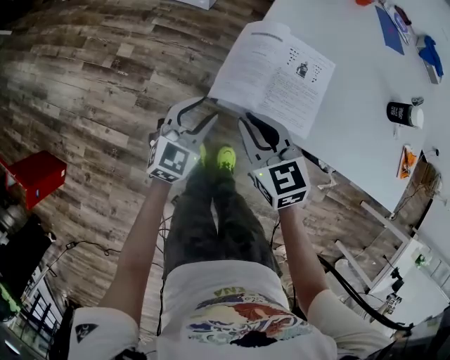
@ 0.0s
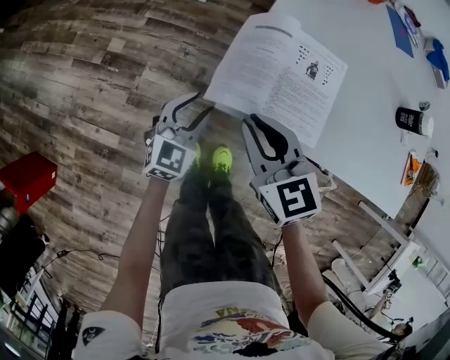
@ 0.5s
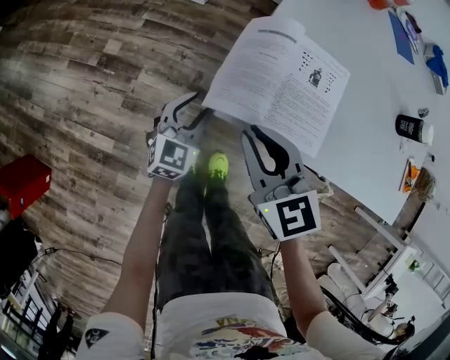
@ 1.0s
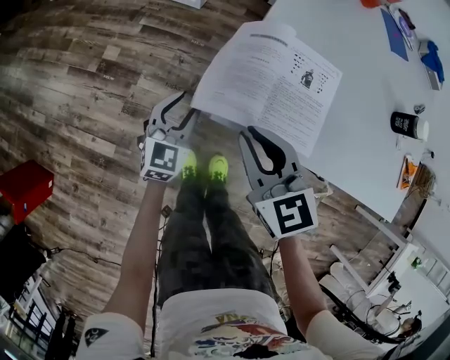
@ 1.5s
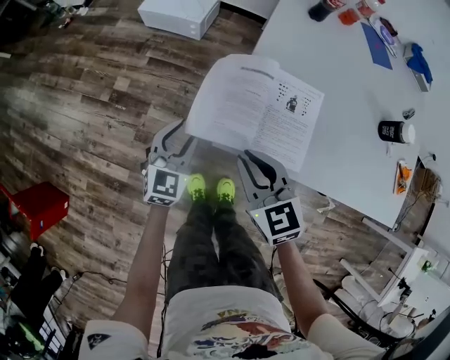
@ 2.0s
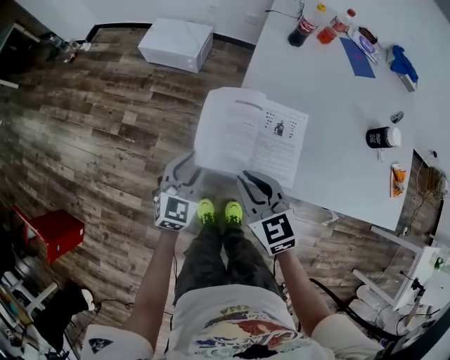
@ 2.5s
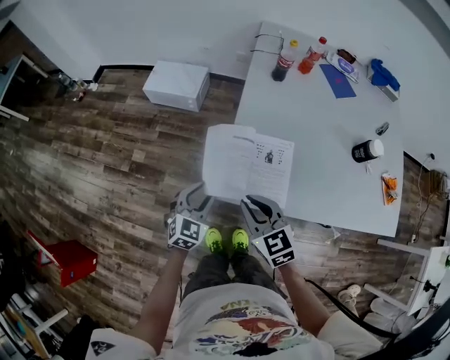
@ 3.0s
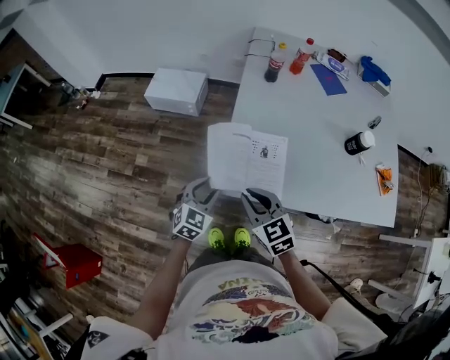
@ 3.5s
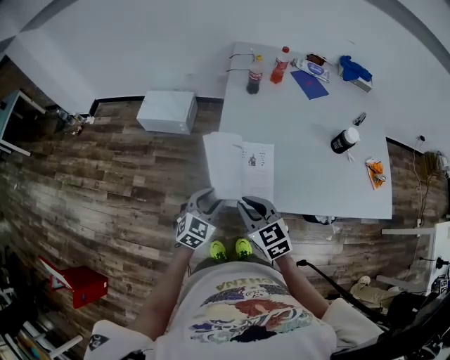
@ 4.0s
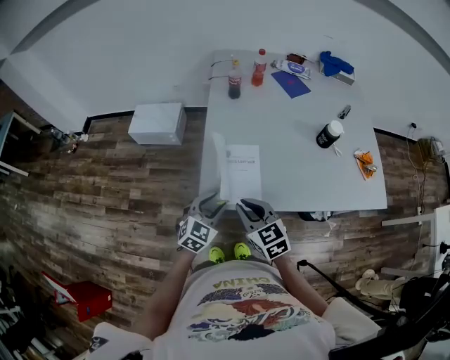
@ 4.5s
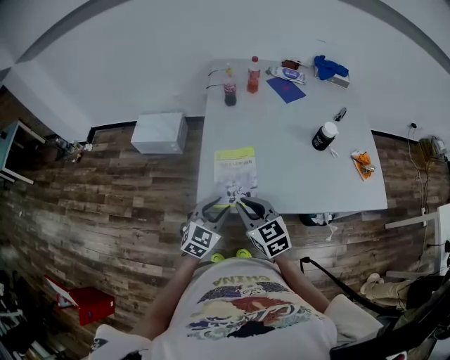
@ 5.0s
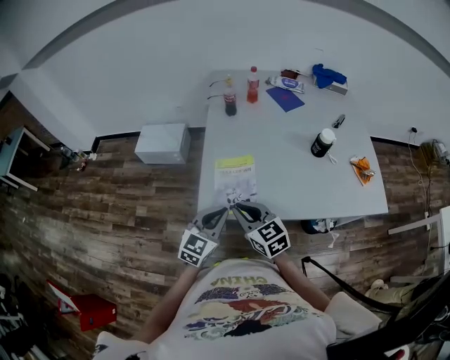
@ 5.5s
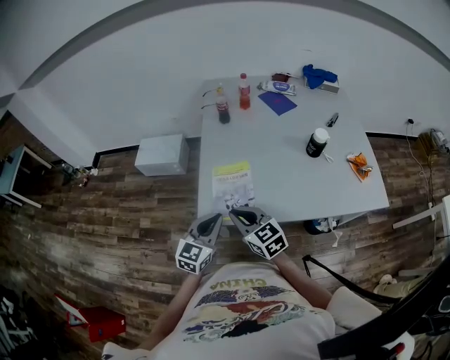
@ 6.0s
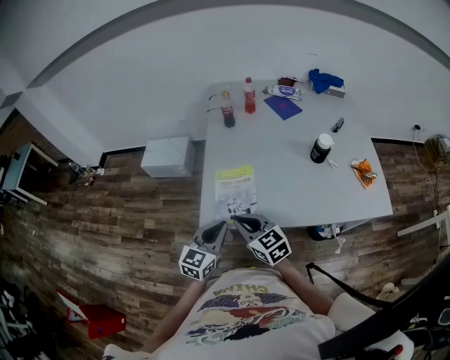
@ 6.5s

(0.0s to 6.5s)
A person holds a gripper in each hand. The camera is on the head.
0.0s - 2.0s: The left gripper goes approximately 5 cm forward, and goes downward and returns, about 10 cm each way.
2.0s - 4.5s: The left gripper moves to the right and upward, some 25 cm, and turns by some 30 degrees. The right gripper is displaced upward and to the right by some 15 cm.
4.5s - 6.5s: The left gripper moves upward and to the right, approximately 10 cm, turns by approximately 20 degrees, and closes its fingers.

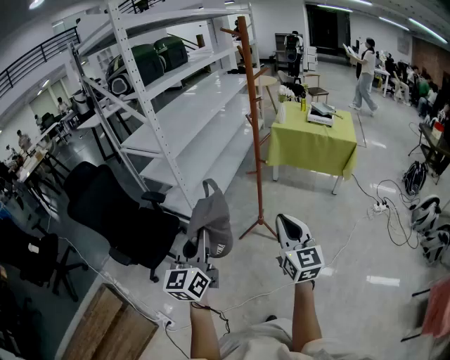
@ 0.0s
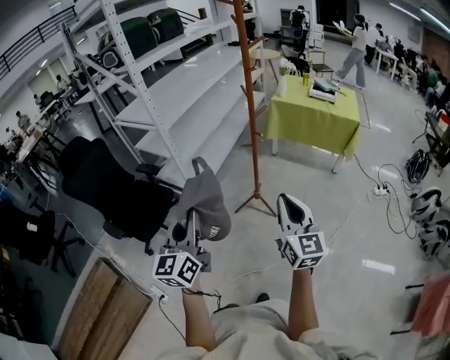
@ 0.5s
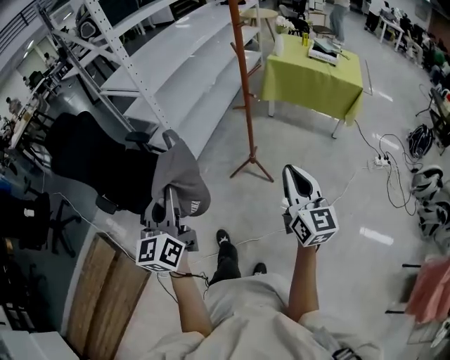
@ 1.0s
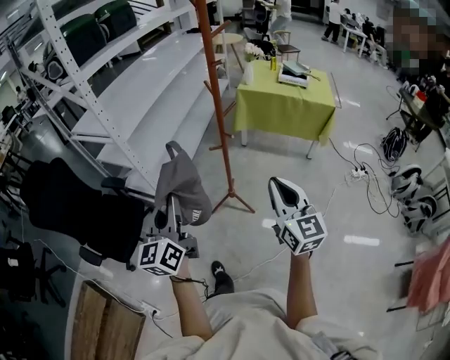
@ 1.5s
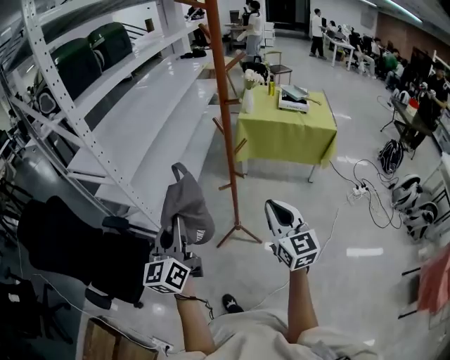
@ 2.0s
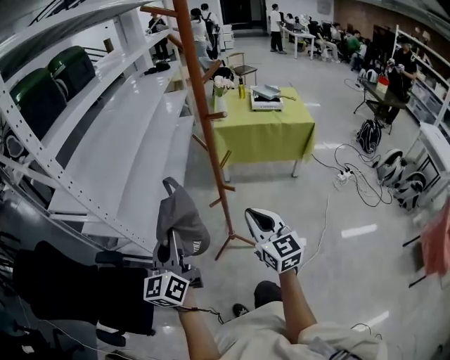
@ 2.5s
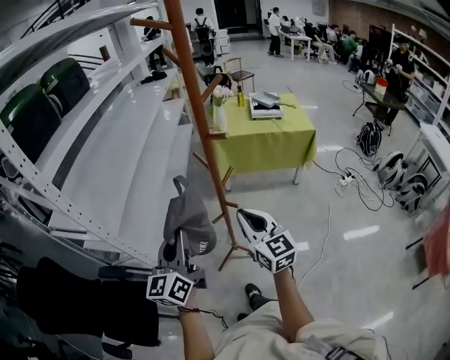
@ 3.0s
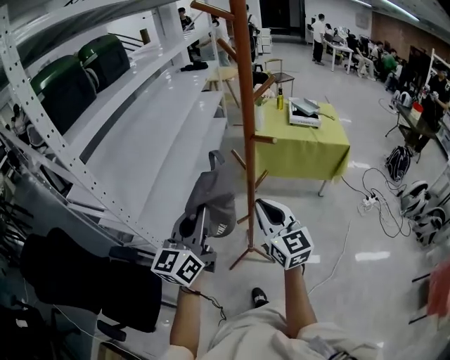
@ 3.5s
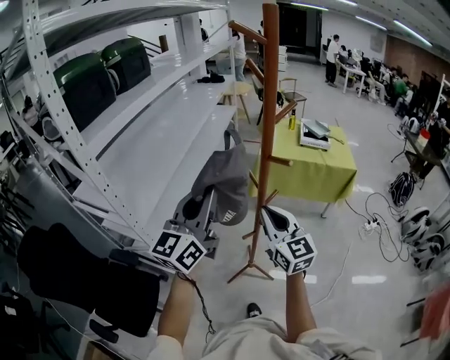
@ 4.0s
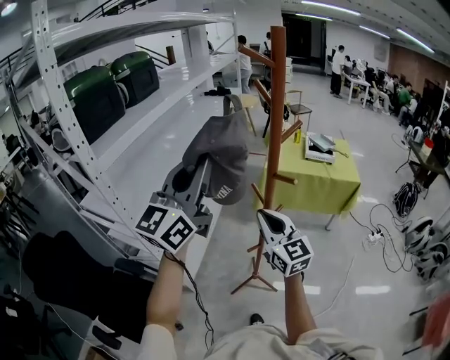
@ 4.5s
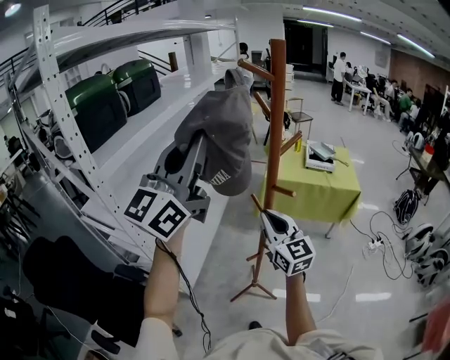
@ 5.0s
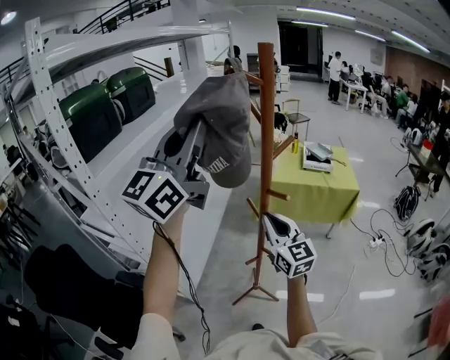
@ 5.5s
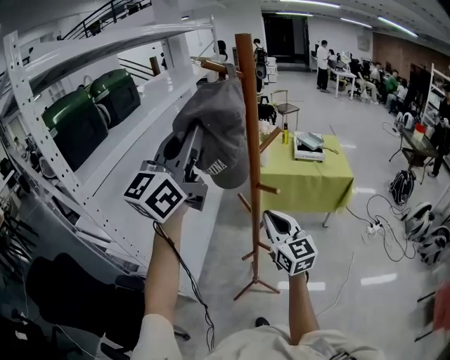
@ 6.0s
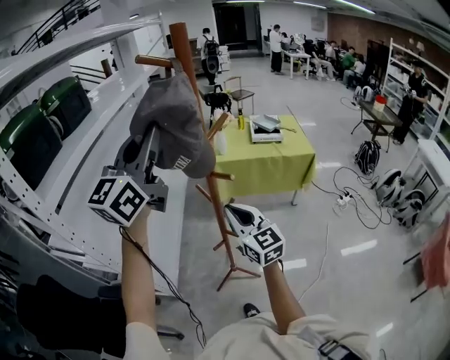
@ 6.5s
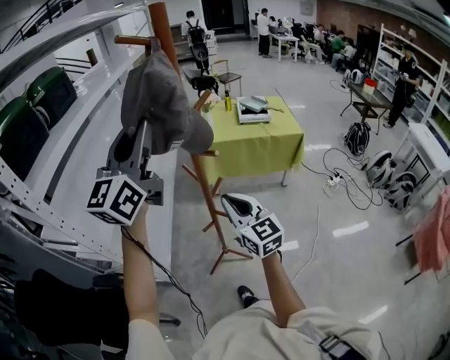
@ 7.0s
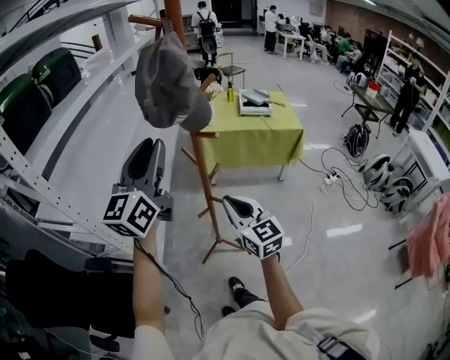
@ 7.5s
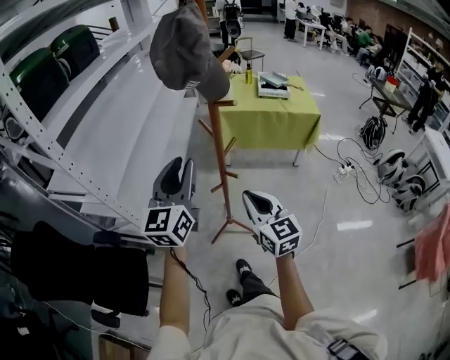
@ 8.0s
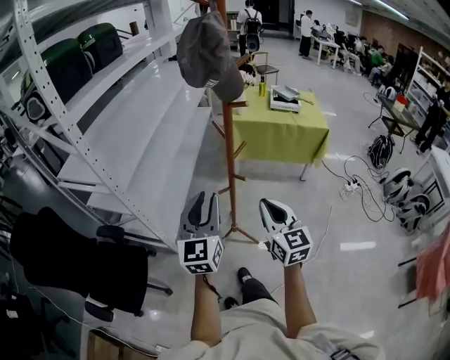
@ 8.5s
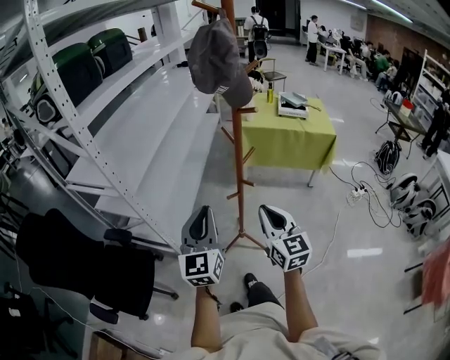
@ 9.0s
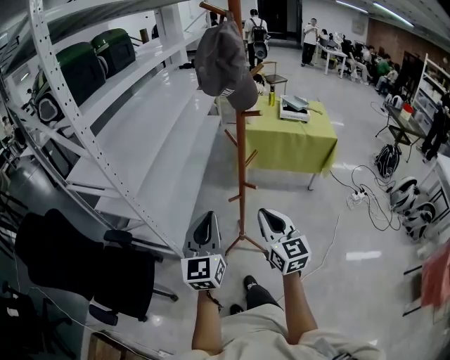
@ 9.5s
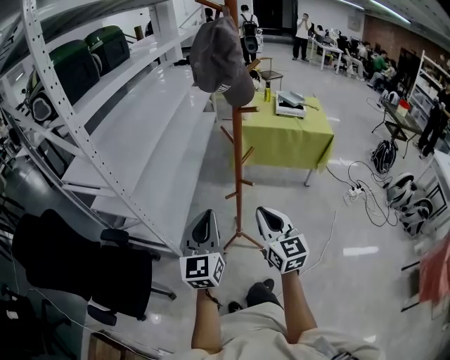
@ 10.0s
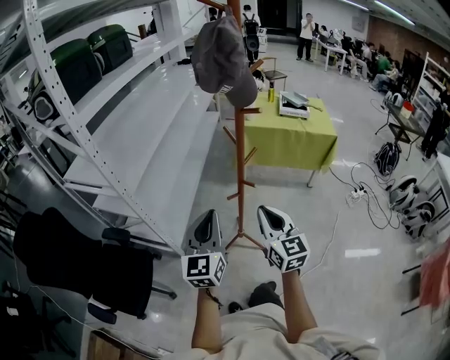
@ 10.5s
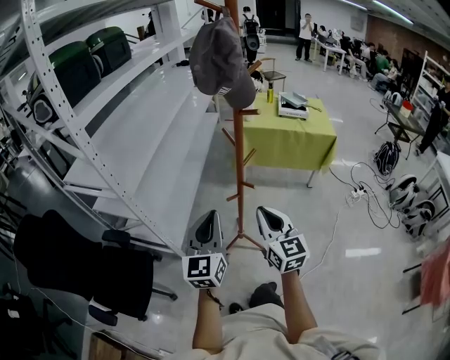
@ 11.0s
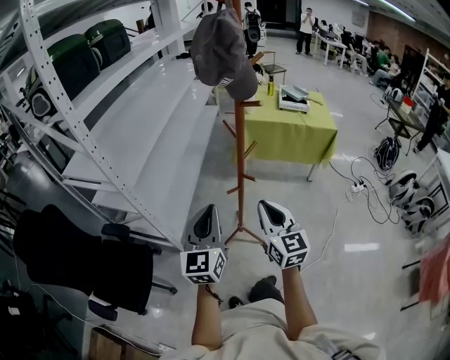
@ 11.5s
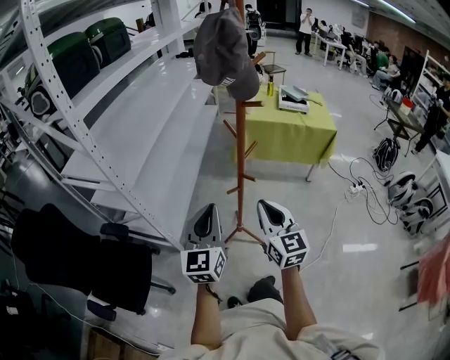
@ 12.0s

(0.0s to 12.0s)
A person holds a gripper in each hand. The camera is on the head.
0.0s - 2.0s: The two grippers go approximately 25 cm forward.
2.0s - 4.0s: The right gripper heads forward and to the left, covering approximately 20 cm; the left gripper shifts about 25 cm forward and upward, and changes its angle by some 20 degrees.
4.0s - 6.0s: The right gripper shifts approximately 5 cm forward. Meanwhile the left gripper is displaced upward by about 20 cm.
6.0s - 8.0s: The left gripper travels downward and backward by some 30 cm, swivels some 20 degrees, and opens up, while the right gripper is displaced backward and downward by approximately 20 cm.
8.0s - 10.0s: The left gripper heads downward and backward, covering roughly 15 cm, and closes its fingers.
10.0s - 12.0s: Neither gripper changes place.

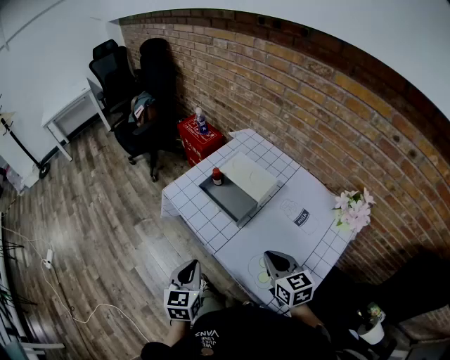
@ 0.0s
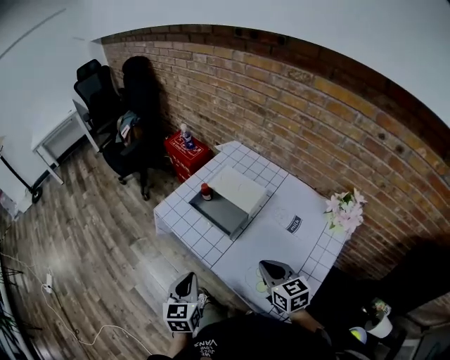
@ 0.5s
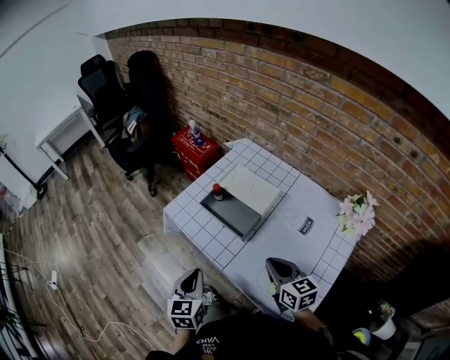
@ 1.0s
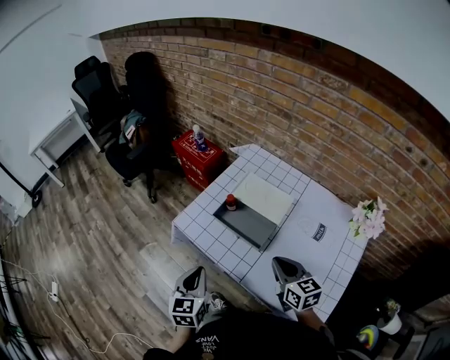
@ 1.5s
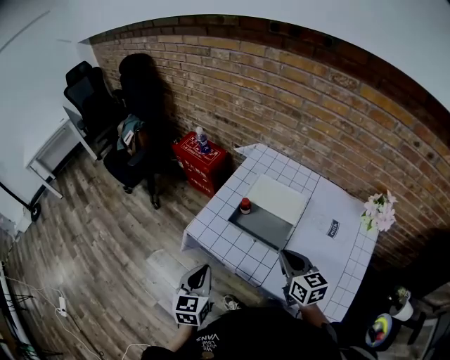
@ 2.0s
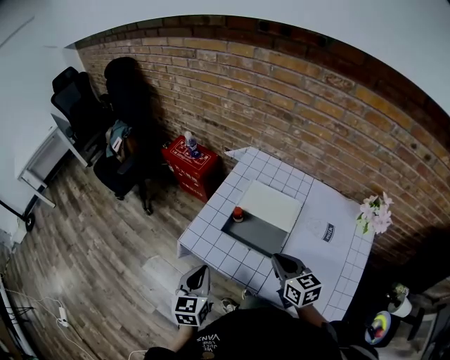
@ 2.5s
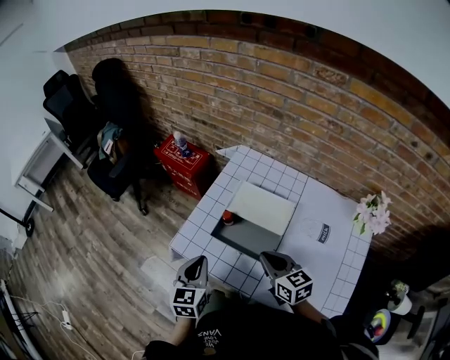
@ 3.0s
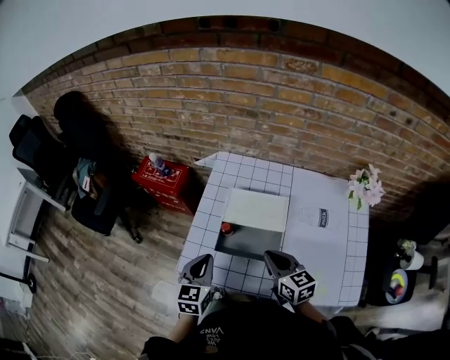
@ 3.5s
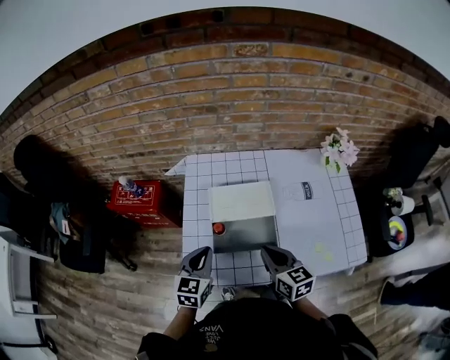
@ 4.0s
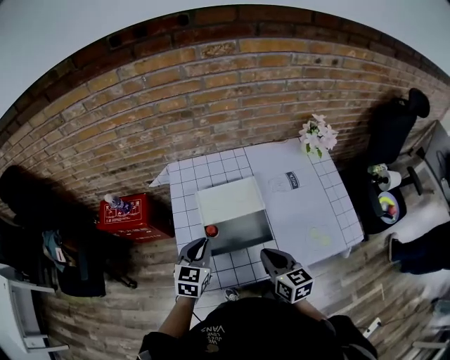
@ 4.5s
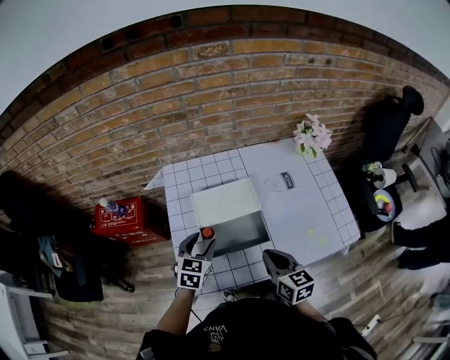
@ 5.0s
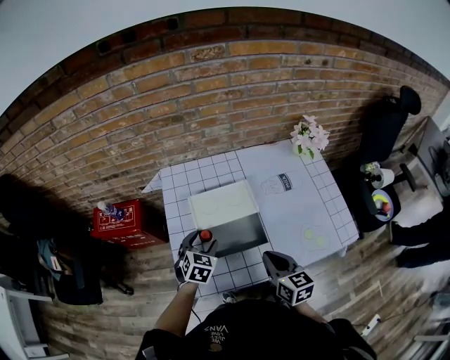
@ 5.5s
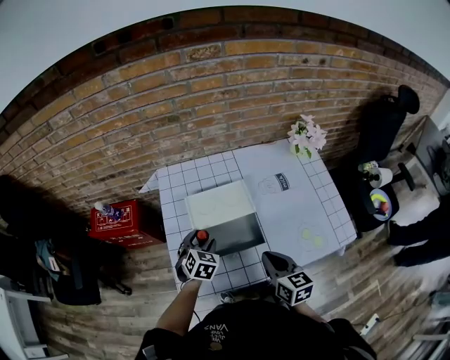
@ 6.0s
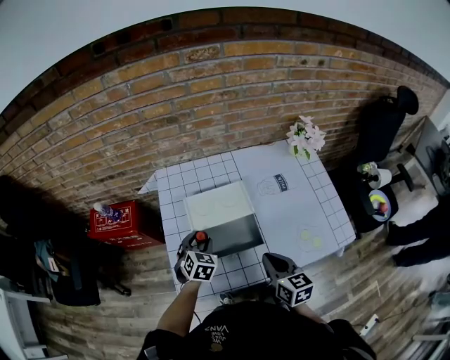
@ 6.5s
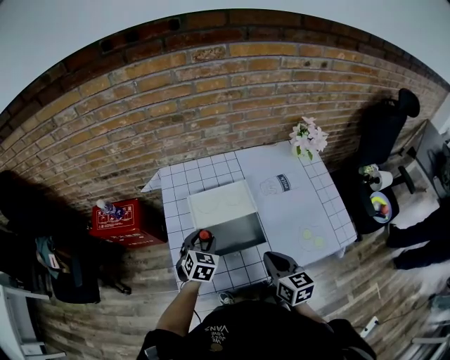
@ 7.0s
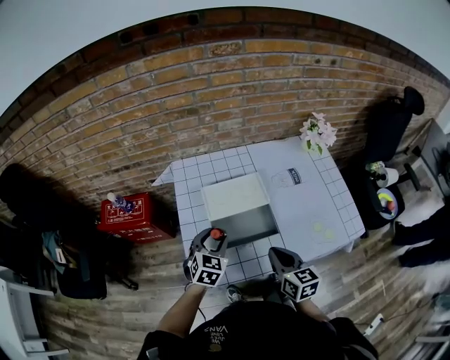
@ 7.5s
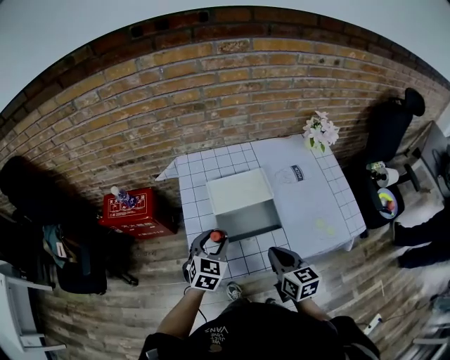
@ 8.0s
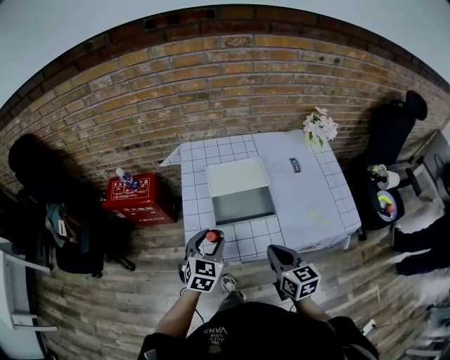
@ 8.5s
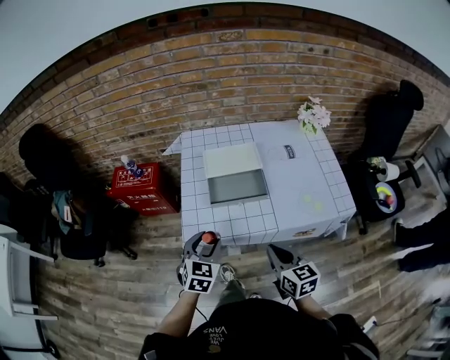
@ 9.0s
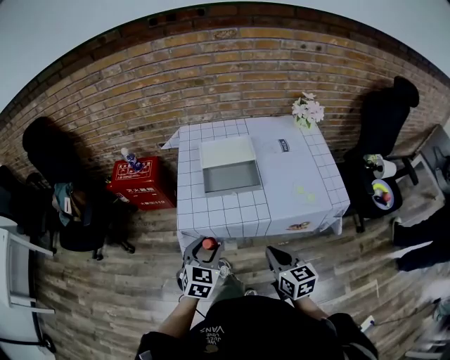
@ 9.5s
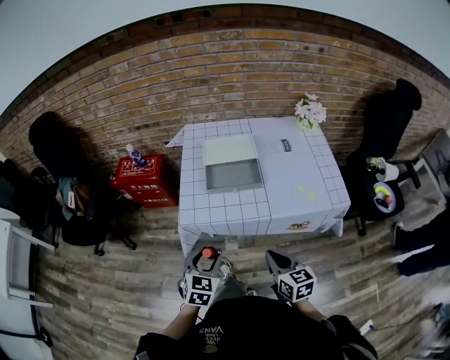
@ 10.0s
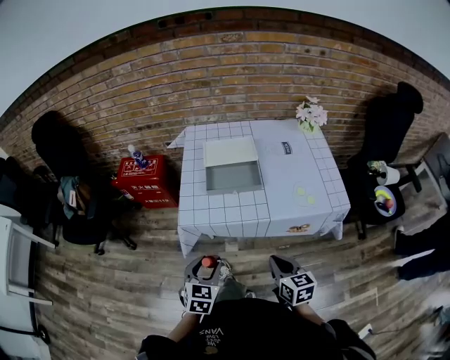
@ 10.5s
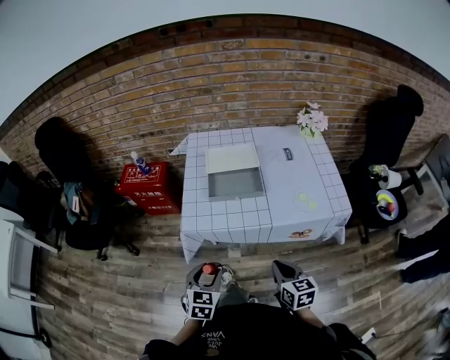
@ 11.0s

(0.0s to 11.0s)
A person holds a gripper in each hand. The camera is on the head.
0.0s - 2.0s: Both grippers move forward and to the left, about 20 cm.
2.0s - 3.5s: The left gripper goes about 15 cm forward, and rotates about 20 degrees. Meanwhile the right gripper moves forward, some 5 cm.
3.5s - 5.5s: The left gripper shifts by roughly 15 cm, rotates some 40 degrees, and opens its fingers. The right gripper ends up approximately 5 cm from where it was, and turns by about 30 degrees.
5.5s - 7.5s: The left gripper changes place by roughly 5 cm.
7.5s - 9.0s: The grippers both shift backward by about 20 cm.
9.0s - 11.0s: The right gripper shifts about 10 cm backward. The left gripper is displaced backward by approximately 15 cm.
